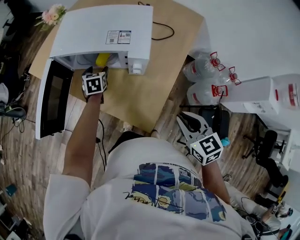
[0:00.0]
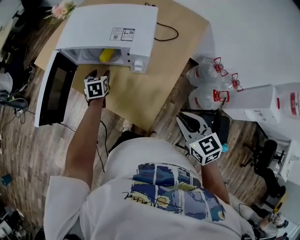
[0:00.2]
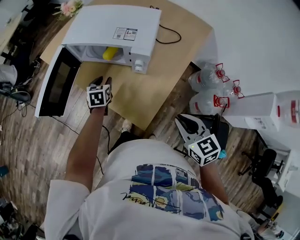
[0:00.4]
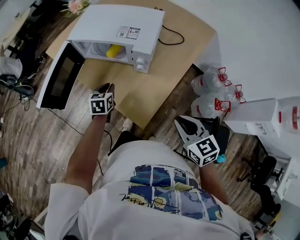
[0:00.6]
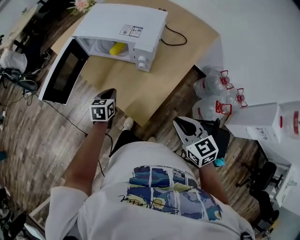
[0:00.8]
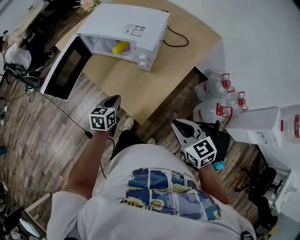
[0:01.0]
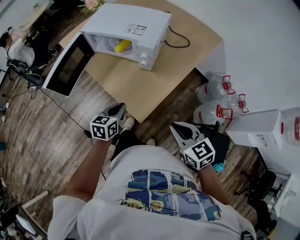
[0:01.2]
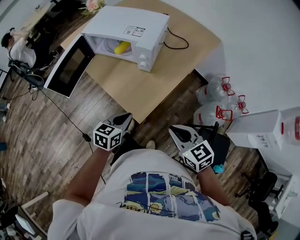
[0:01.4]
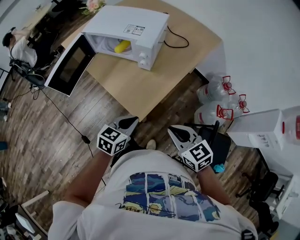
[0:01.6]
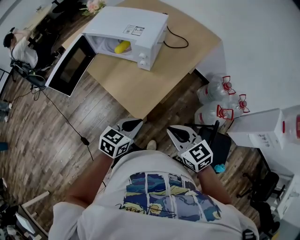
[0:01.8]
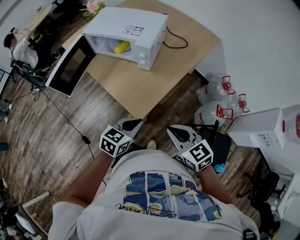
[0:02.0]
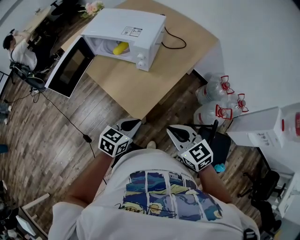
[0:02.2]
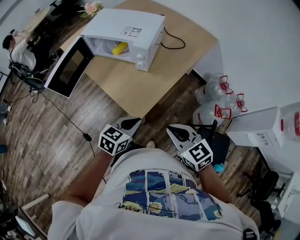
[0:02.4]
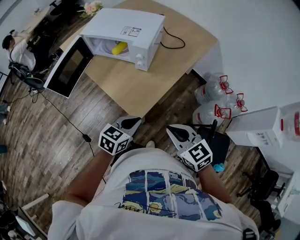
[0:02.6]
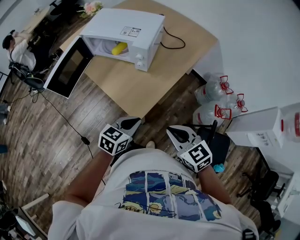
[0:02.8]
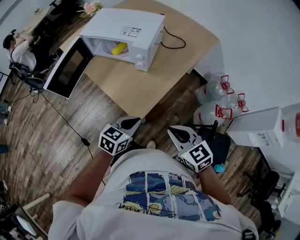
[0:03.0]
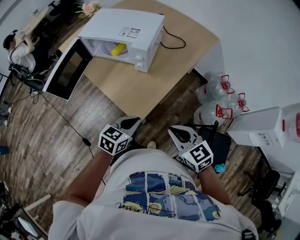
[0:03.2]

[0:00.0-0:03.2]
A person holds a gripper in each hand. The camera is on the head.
0:00.0 to 0:01.6: The left gripper moves backward, approximately 40 cm, turns by about 30 degrees, and closes. Meanwhile the right gripper shifts roughly 15 cm backward, and turns by some 20 degrees.
0:01.6 to 0:03.2: There are only small adjustments of the grippers.

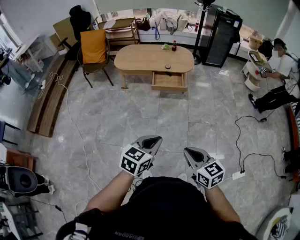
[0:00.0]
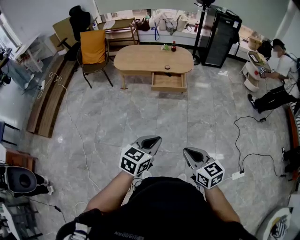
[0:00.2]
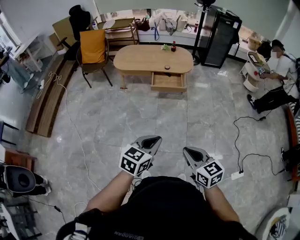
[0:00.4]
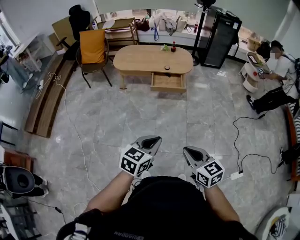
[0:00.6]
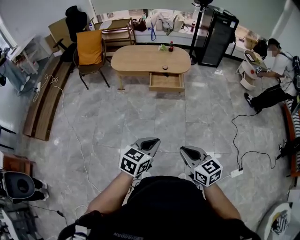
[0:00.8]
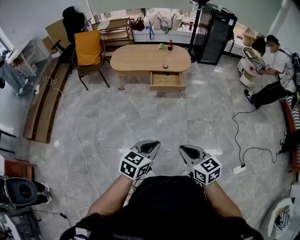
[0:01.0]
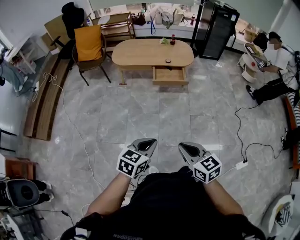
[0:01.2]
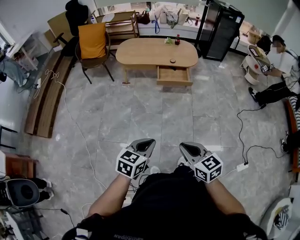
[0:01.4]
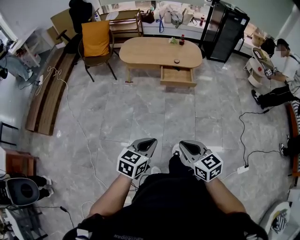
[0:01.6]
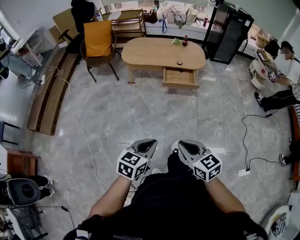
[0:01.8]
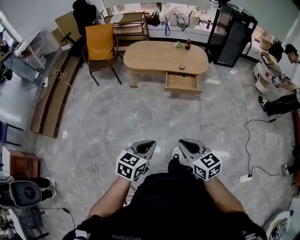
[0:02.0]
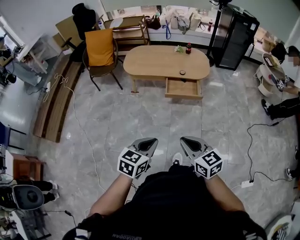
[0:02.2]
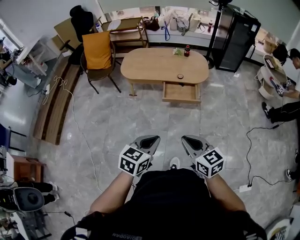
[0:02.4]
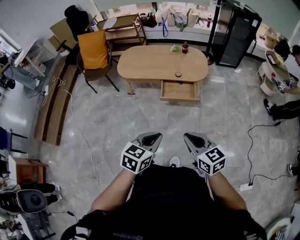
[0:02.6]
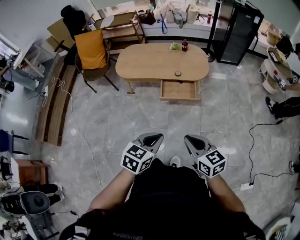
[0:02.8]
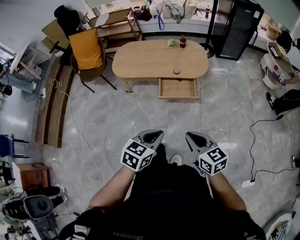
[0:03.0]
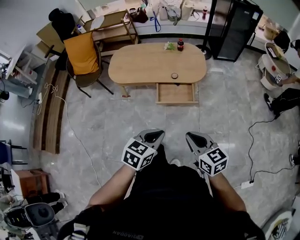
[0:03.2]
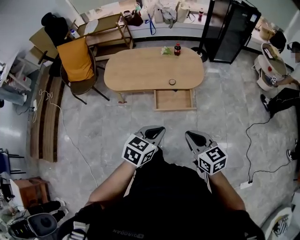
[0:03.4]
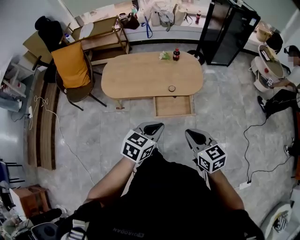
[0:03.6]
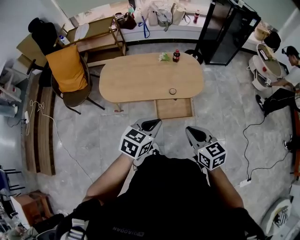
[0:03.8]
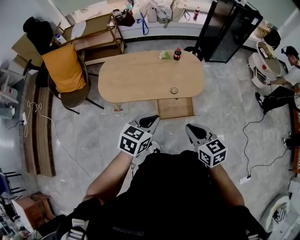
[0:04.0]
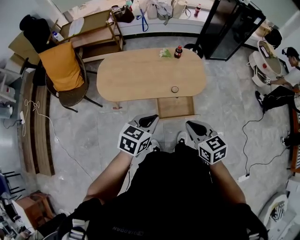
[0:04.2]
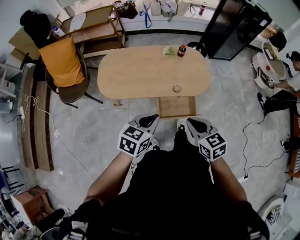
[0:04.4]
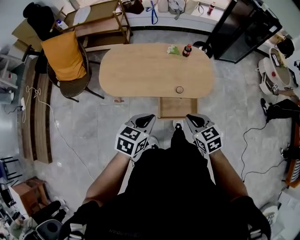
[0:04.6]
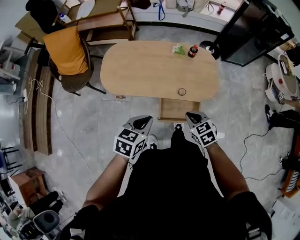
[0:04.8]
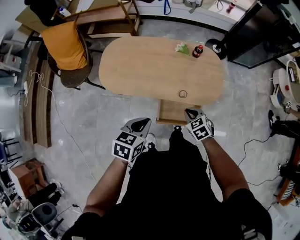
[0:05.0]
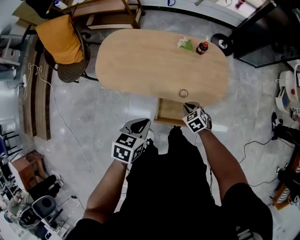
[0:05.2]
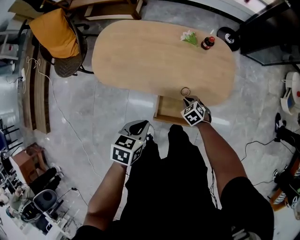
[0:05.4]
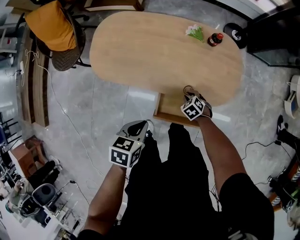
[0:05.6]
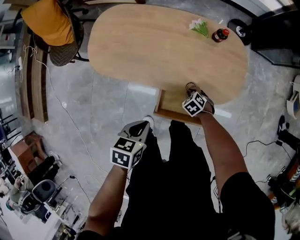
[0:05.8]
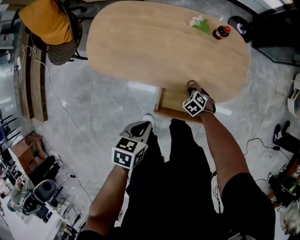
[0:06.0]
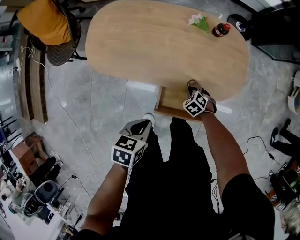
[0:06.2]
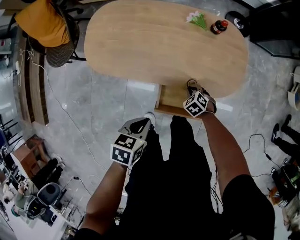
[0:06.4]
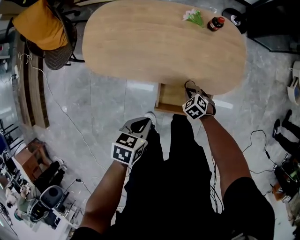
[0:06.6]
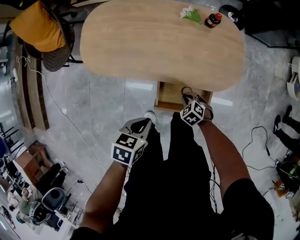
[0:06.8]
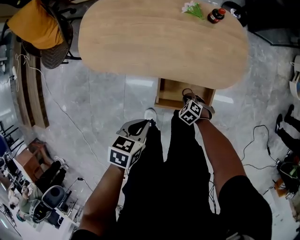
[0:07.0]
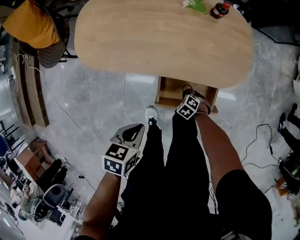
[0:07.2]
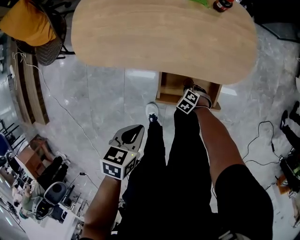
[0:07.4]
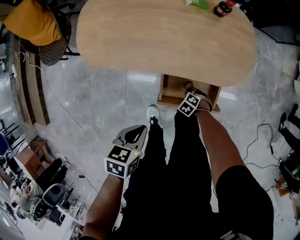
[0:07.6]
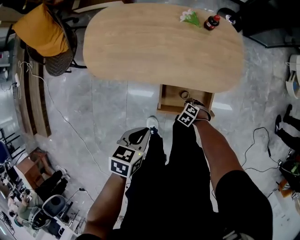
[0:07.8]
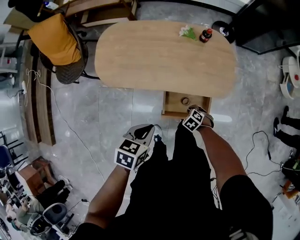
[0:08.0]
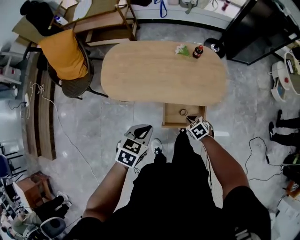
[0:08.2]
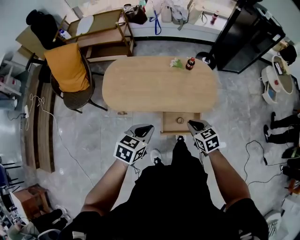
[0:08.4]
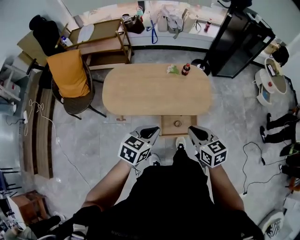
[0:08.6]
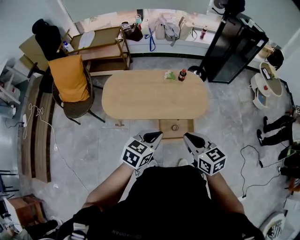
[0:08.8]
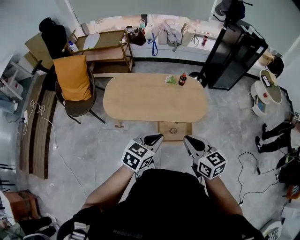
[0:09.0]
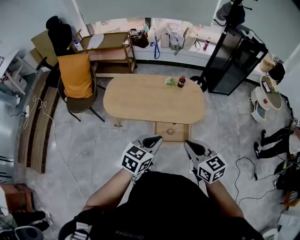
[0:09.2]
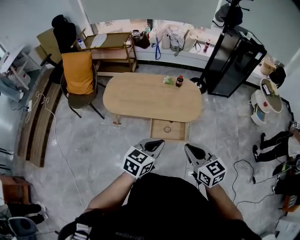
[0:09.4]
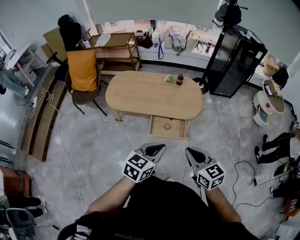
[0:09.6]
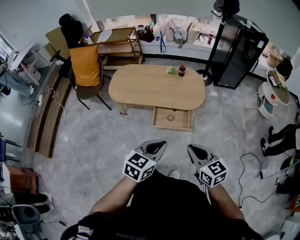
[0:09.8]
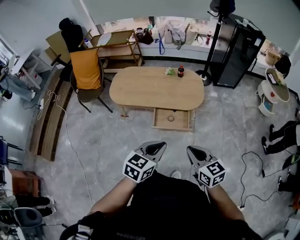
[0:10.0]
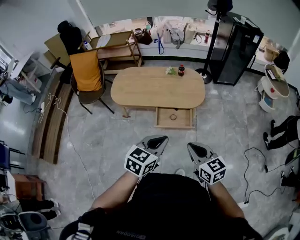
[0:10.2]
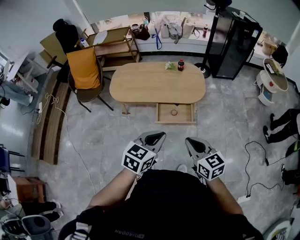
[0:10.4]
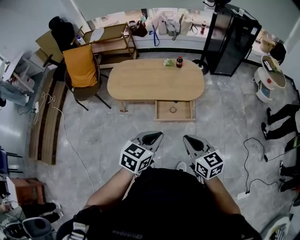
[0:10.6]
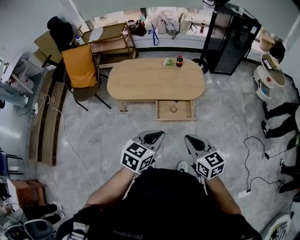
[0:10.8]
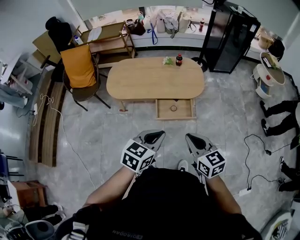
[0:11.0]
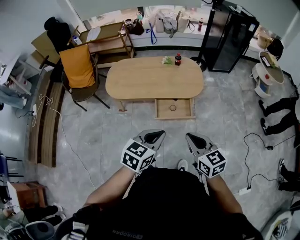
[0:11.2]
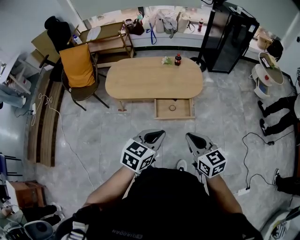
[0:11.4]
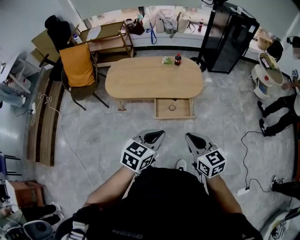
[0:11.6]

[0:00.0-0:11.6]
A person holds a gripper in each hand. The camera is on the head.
0:00.0 to 0:01.4: The grippers both shift to the left by some 15 cm.
0:01.4 to 0:02.8: The right gripper travels forward by about 30 cm; the left gripper heads forward and to the right, covering roughly 30 cm.
0:02.8 to 0:04.4: Both grippers travel together forward, some 40 cm.
0:04.4 to 0:05.8: The right gripper goes approximately 50 cm downward, and tilts its fingers some 40 degrees downward, while the left gripper shifts roughly 20 cm downward, and turns by roughly 40 degrees.
0:05.8 to 0:07.2: The right gripper moves roughly 15 cm; the left gripper changes place by approximately 5 cm.
0:07.2 to 0:08.8: The right gripper travels upward by some 60 cm, and angles its fingers upward, by about 50 degrees, while the left gripper goes roughly 30 cm upward, and swivels about 40 degrees.
0:08.8 to 0:10.2: Both grippers move backward and to the right, some 25 cm.
0:10.2 to 0:11.6: The two grippers go some 5 cm to the left.

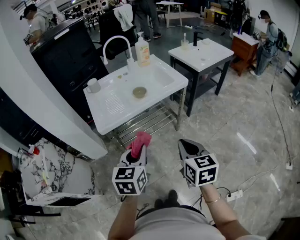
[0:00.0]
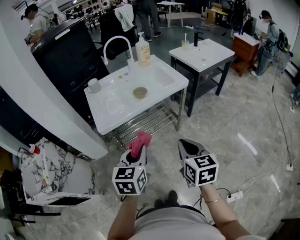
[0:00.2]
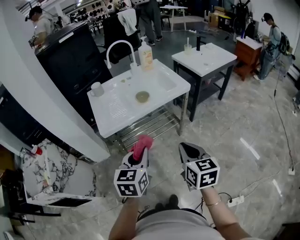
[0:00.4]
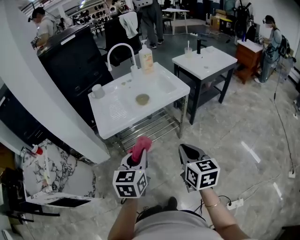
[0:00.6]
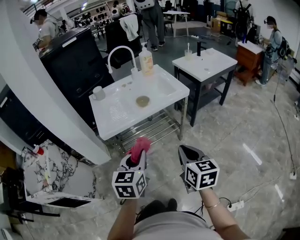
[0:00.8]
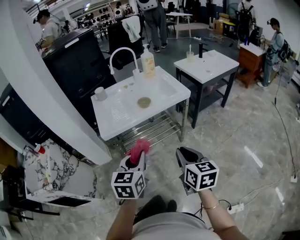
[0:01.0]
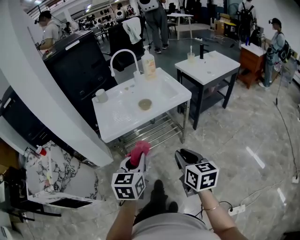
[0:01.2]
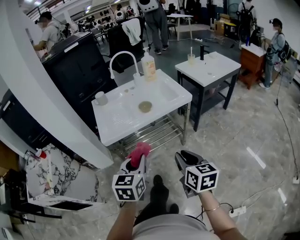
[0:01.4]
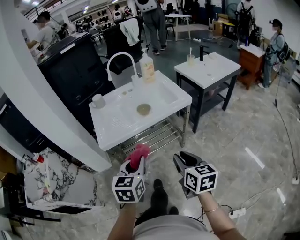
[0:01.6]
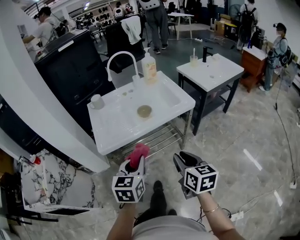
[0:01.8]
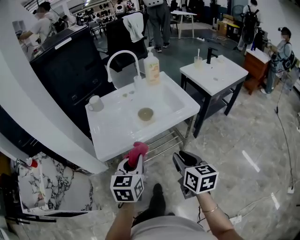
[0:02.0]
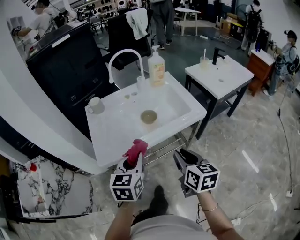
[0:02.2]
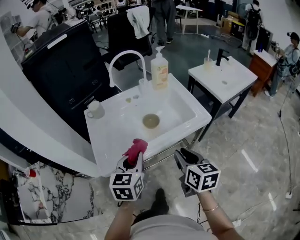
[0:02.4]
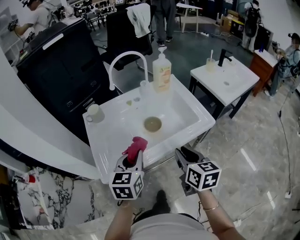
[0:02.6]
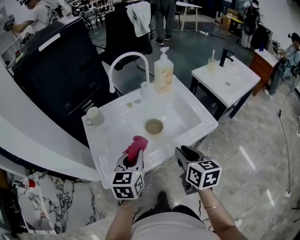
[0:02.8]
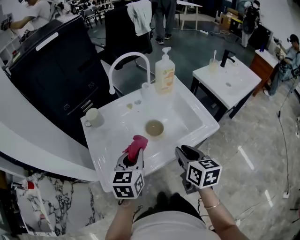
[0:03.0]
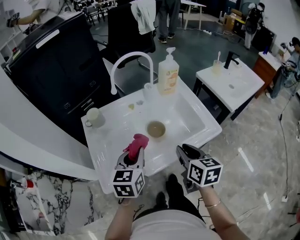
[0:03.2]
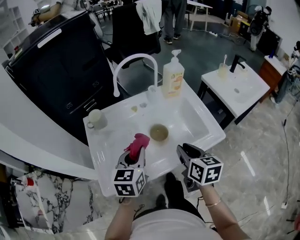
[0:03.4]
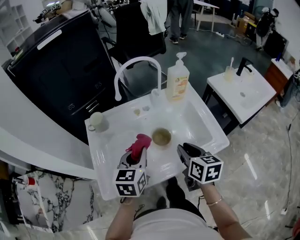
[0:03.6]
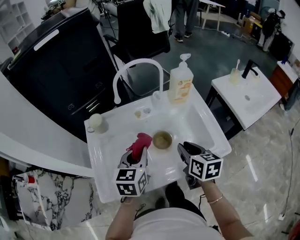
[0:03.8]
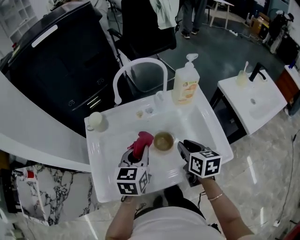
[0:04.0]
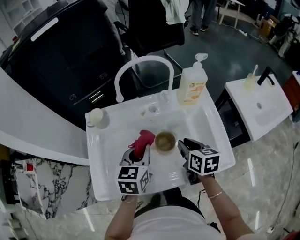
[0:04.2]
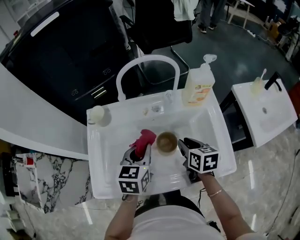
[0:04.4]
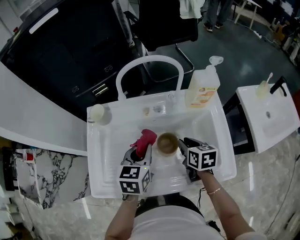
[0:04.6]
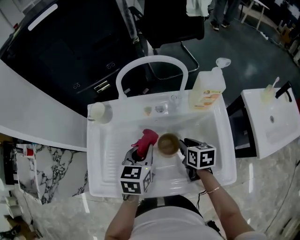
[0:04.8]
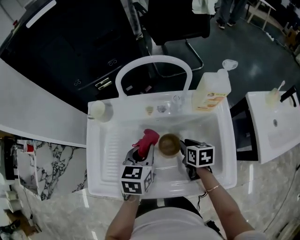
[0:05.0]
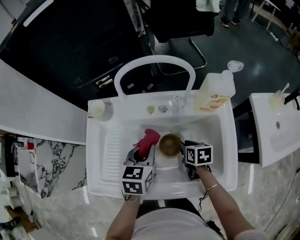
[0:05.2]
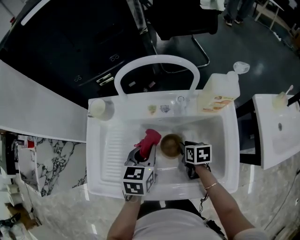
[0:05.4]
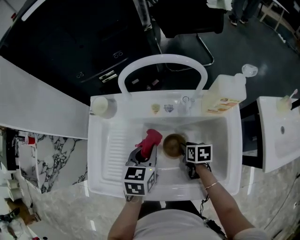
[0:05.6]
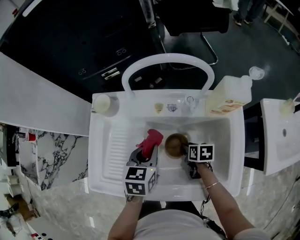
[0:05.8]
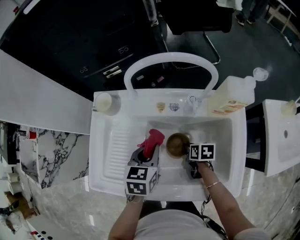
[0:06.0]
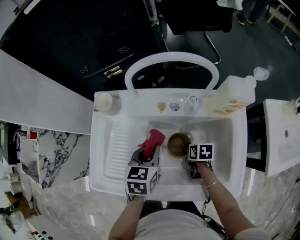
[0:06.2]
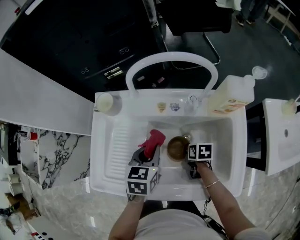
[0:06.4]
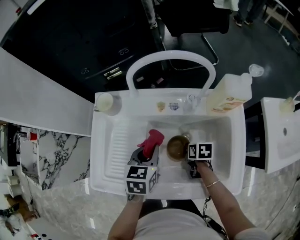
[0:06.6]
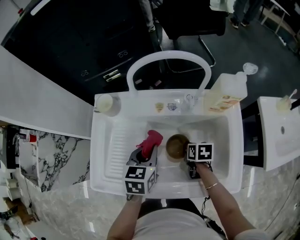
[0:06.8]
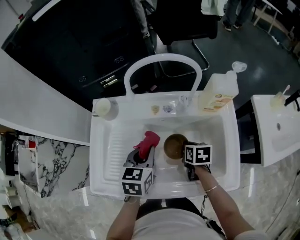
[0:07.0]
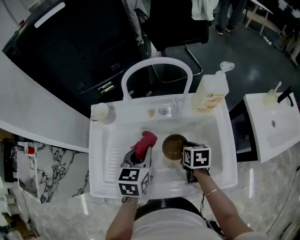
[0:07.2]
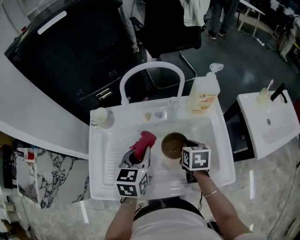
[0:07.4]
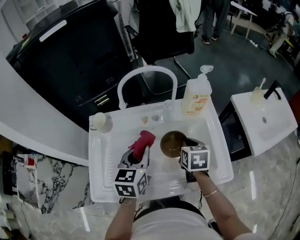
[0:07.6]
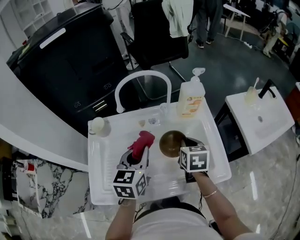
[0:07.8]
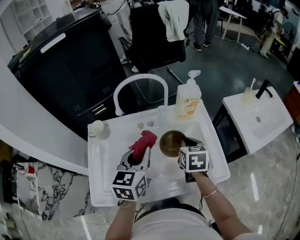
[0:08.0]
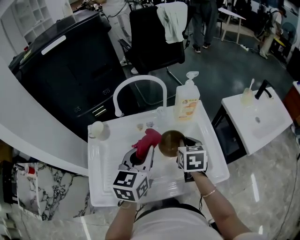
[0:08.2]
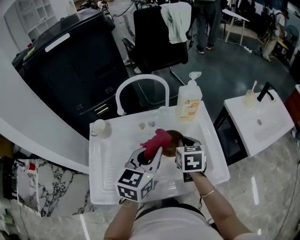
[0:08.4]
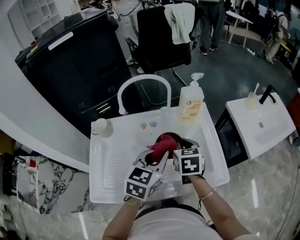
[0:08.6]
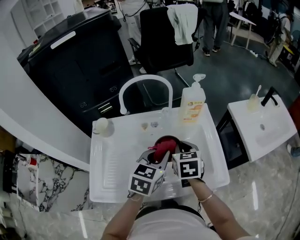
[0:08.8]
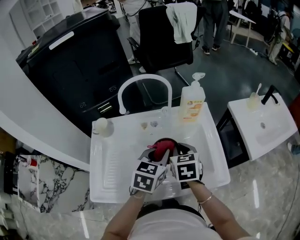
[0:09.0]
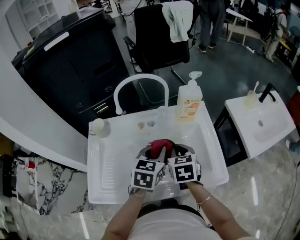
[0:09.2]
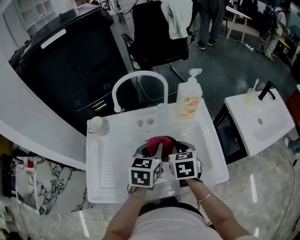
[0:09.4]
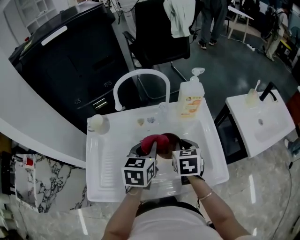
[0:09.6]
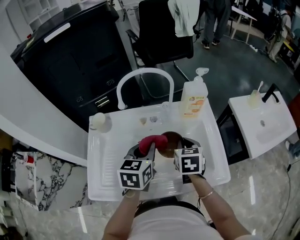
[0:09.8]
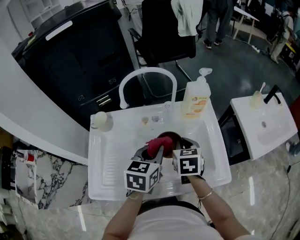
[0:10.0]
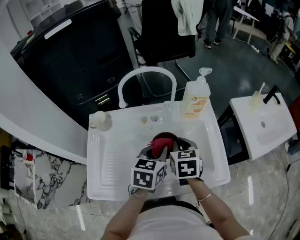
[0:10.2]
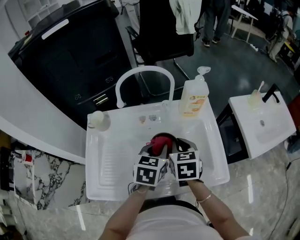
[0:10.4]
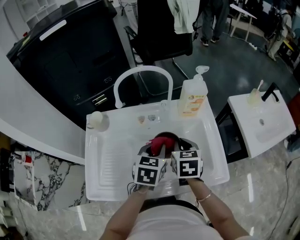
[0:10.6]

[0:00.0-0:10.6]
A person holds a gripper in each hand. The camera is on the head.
0:00.0 to 0:01.6: The right gripper shifts by roughly 5 cm, and opens its fingers. Meanwhile the left gripper ends up some 5 cm from where it was.
0:01.6 to 0:03.0: The two grippers go approximately 35 cm forward.
0:03.0 to 0:04.6: The left gripper is displaced forward by about 20 cm. The right gripper travels forward and downward by approximately 30 cm, and swivels roughly 30 degrees.
0:04.6 to 0:06.0: The left gripper goes roughly 5 cm downward, while the right gripper shifts some 15 cm downward, and swivels about 20 degrees.
0:06.0 to 0:07.6: The left gripper moves upward, some 10 cm; the right gripper is displaced upward by about 20 cm, swivels approximately 30 degrees, and closes its fingers.
0:07.6 to 0:09.0: The left gripper heads to the right, covering about 10 cm. Meanwhile the right gripper ends up some 5 cm from where it was.
0:09.0 to 0:10.6: The left gripper changes place by about 5 cm.
